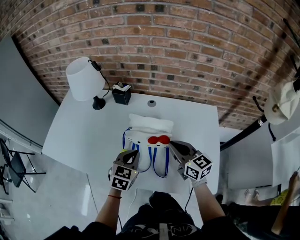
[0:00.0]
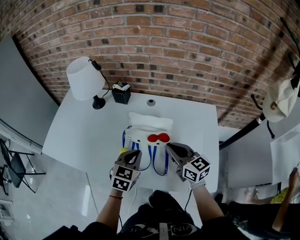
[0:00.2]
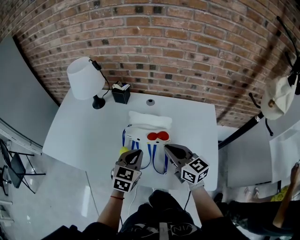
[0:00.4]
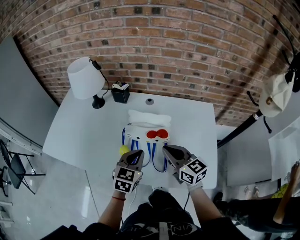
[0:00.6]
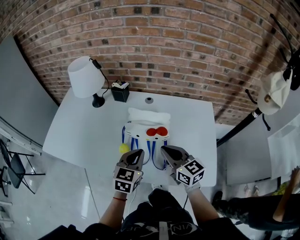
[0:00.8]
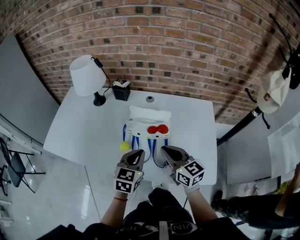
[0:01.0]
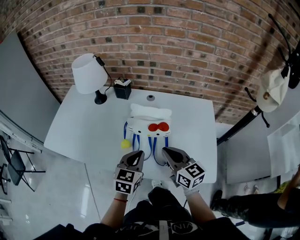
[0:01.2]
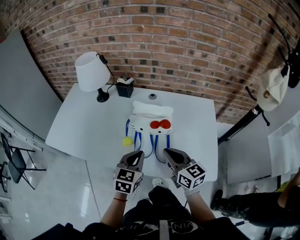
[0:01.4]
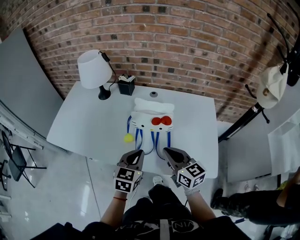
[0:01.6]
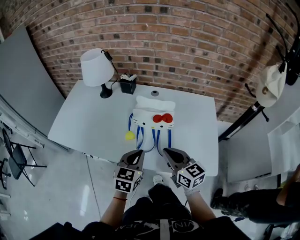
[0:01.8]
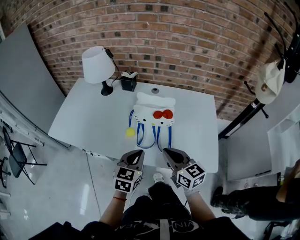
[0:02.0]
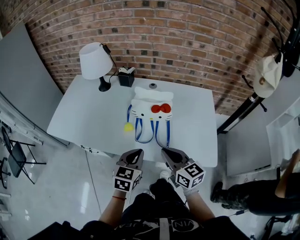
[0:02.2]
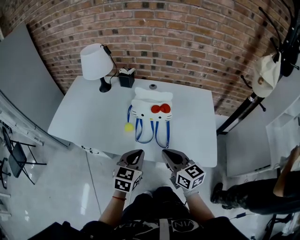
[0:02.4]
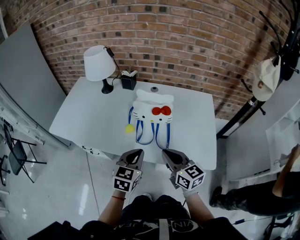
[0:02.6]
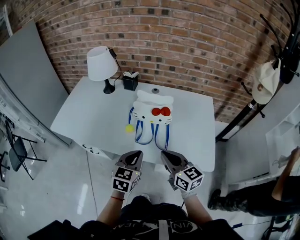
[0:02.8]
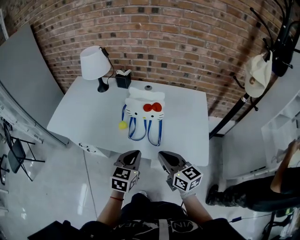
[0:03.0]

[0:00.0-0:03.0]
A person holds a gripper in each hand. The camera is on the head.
0.0 to 1.6 s: The left gripper travels backward by approximately 10 cm. Meanwhile the right gripper moves backward and to the left, approximately 15 cm.
1.6 to 3.0 s: Both grippers travel together backward, some 10 cm.

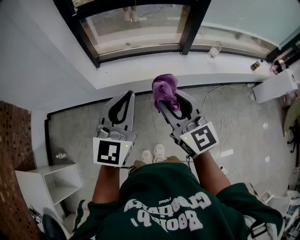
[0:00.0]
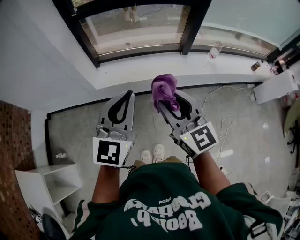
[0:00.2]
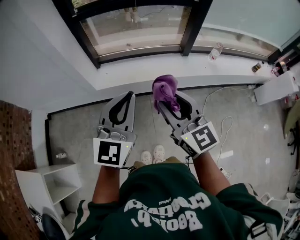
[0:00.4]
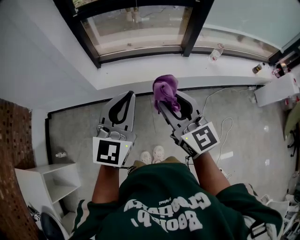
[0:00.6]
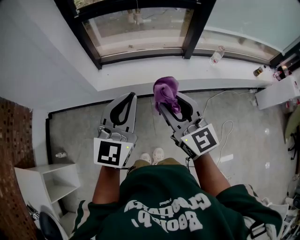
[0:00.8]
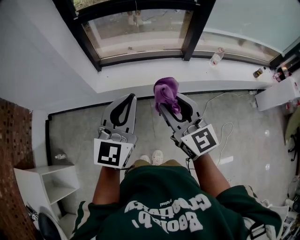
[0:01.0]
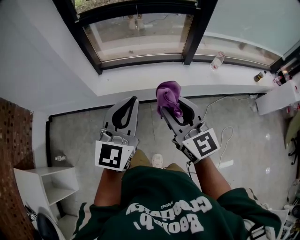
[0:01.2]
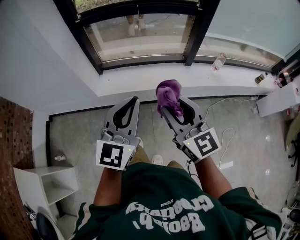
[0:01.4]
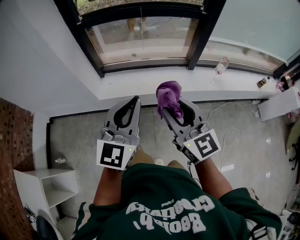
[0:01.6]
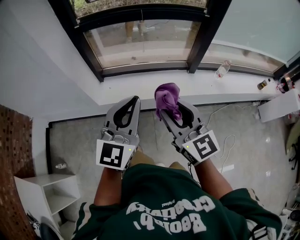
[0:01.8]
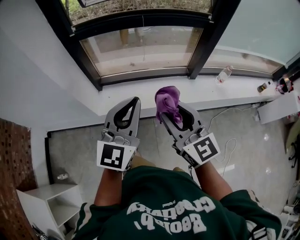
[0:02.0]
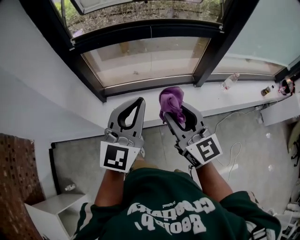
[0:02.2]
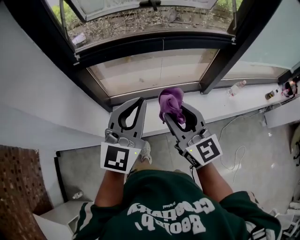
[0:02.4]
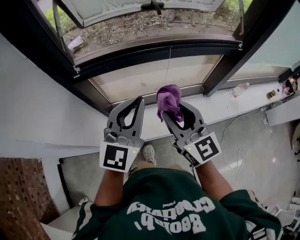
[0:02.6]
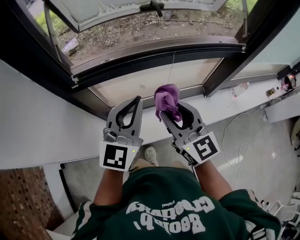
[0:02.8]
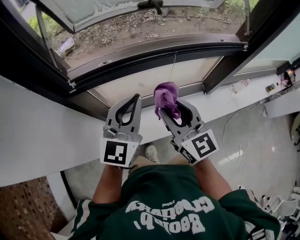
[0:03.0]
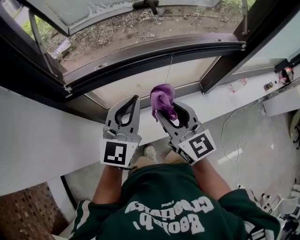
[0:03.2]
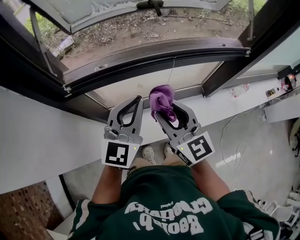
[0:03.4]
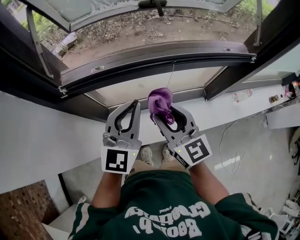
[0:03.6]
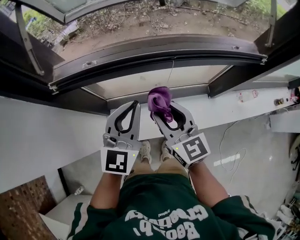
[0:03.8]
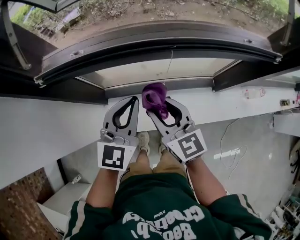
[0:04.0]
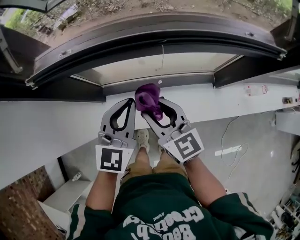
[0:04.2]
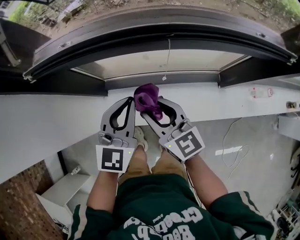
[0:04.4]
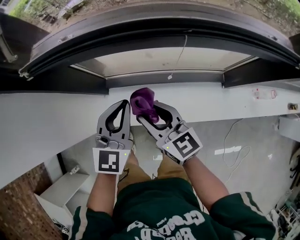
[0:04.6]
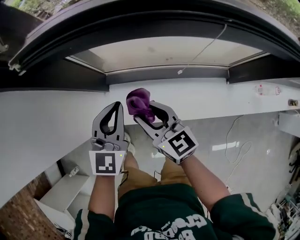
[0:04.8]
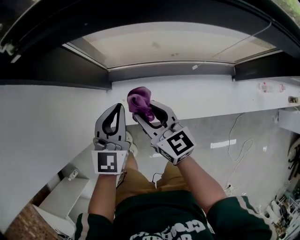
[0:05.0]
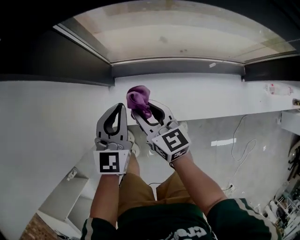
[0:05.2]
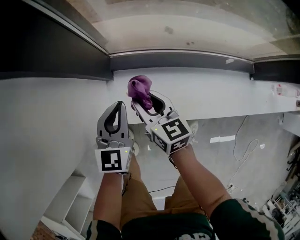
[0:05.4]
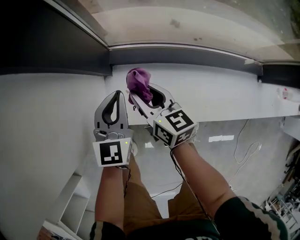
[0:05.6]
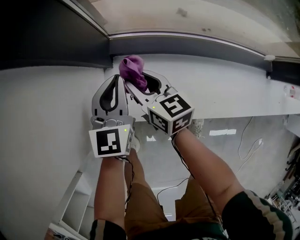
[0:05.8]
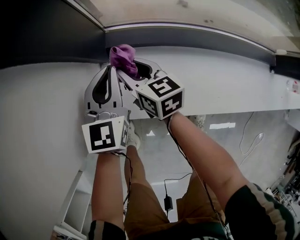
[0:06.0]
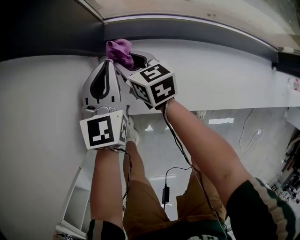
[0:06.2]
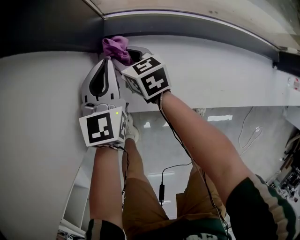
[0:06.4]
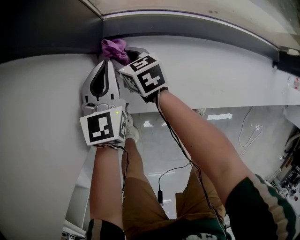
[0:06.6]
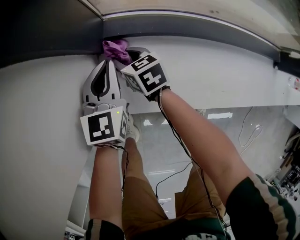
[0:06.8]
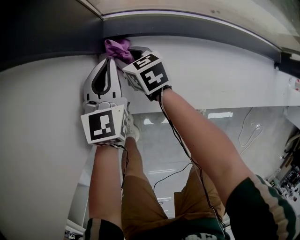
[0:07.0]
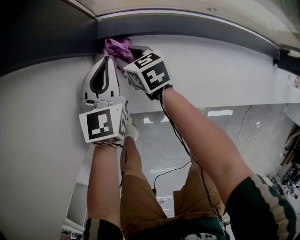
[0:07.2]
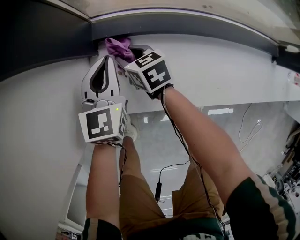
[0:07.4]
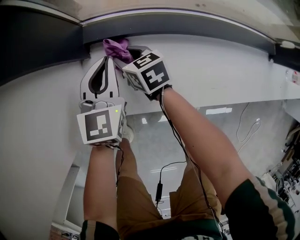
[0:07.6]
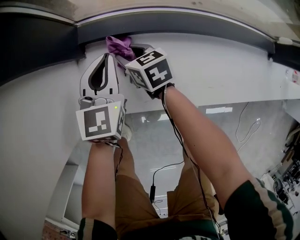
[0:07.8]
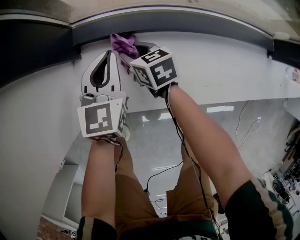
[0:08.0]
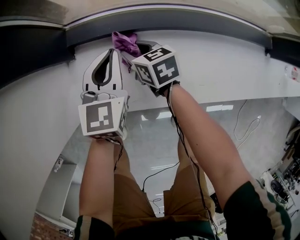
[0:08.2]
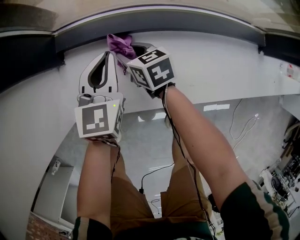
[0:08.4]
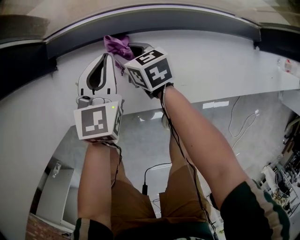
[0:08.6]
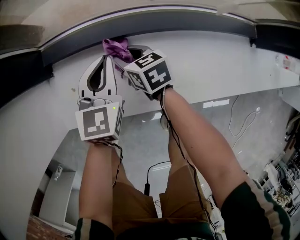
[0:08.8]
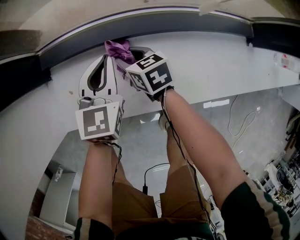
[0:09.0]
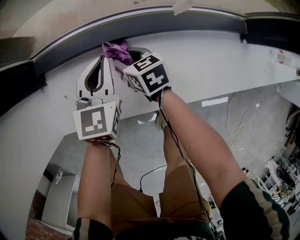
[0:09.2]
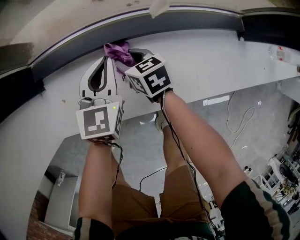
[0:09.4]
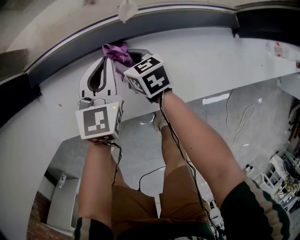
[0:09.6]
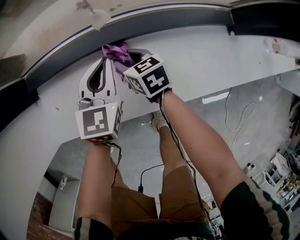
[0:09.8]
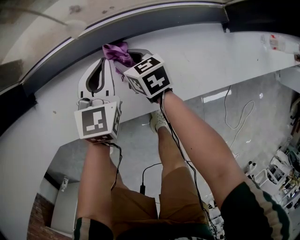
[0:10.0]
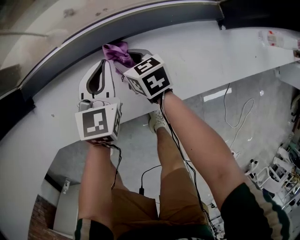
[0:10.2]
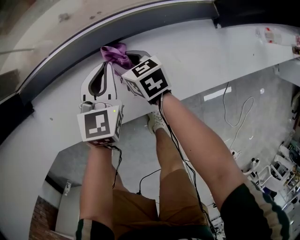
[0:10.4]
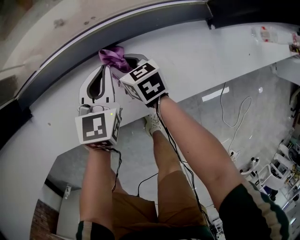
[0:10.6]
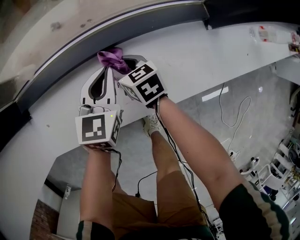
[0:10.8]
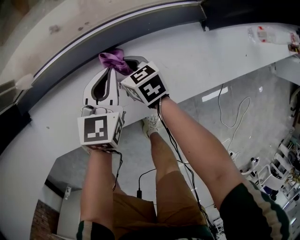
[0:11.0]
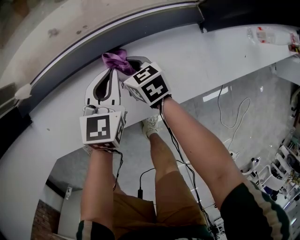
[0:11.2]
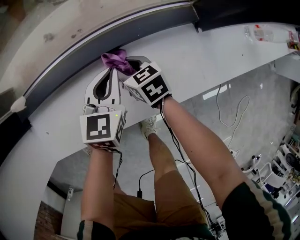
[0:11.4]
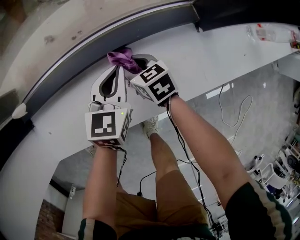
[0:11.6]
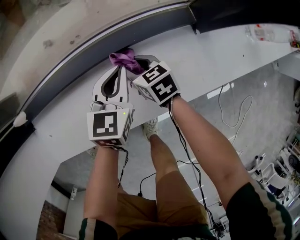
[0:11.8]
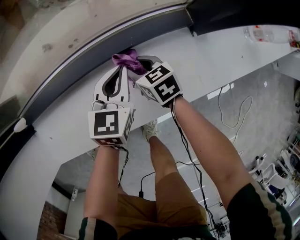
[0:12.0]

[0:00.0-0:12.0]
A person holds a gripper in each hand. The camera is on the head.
0.0 to 1.6 s: The two grippers go approximately 5 cm forward.
1.6 to 3.0 s: The pair of grippers is taken forward, about 50 cm.
3.0 to 4.4 s: The grippers both shift downward by approximately 15 cm. The right gripper rotates about 20 degrees.
4.4 to 6.0 s: Both grippers travel together downward and to the left, roughly 50 cm. The right gripper turns by approximately 20 degrees; the left gripper turns by roughly 20 degrees.
6.0 to 7.6 s: The right gripper goes about 10 cm downward. Meanwhile the left gripper ends up approximately 5 cm from where it was.
7.6 to 9.0 s: Both grippers travel together to the right, approximately 20 cm.
9.0 to 10.4 s: The grippers both shift to the right by roughly 15 cm.
10.4 to 12.0 s: Both grippers move to the right, about 15 cm.

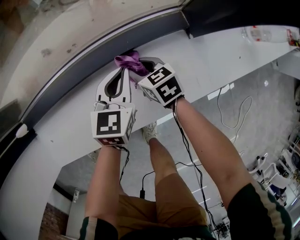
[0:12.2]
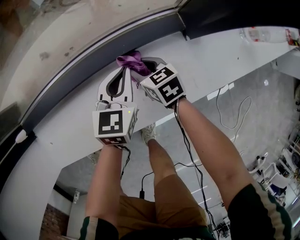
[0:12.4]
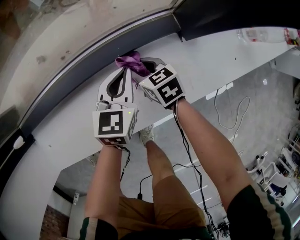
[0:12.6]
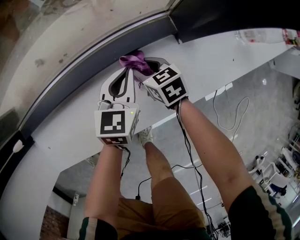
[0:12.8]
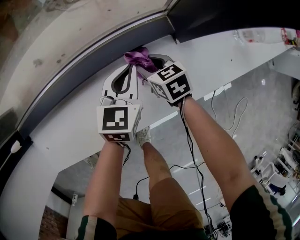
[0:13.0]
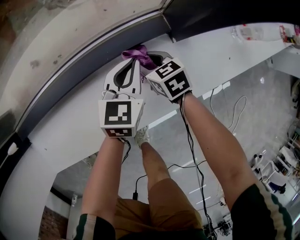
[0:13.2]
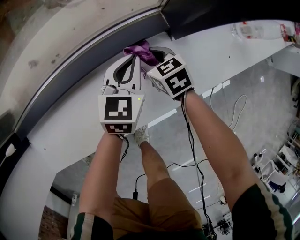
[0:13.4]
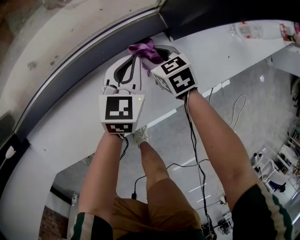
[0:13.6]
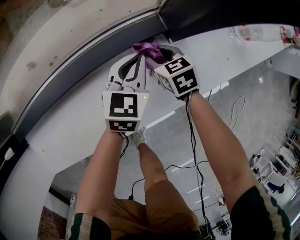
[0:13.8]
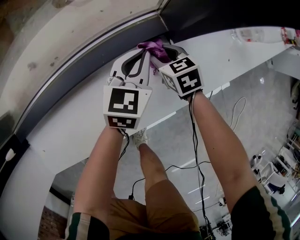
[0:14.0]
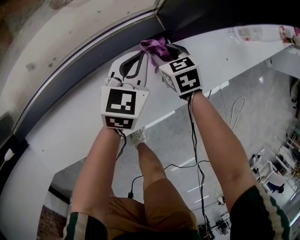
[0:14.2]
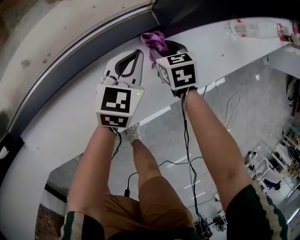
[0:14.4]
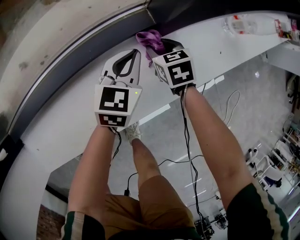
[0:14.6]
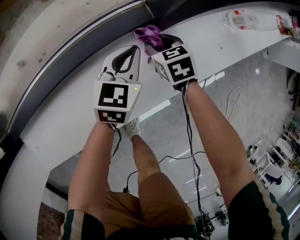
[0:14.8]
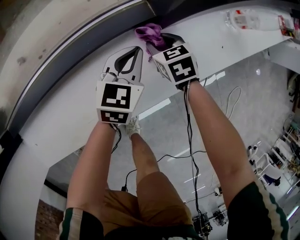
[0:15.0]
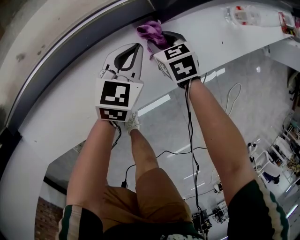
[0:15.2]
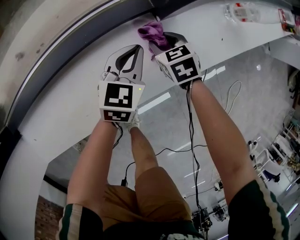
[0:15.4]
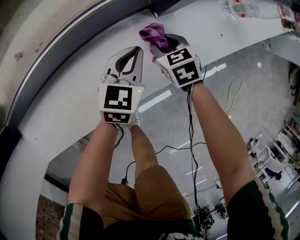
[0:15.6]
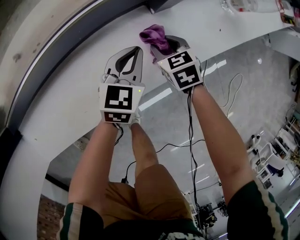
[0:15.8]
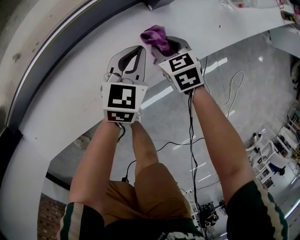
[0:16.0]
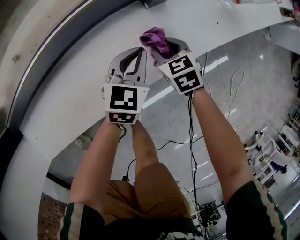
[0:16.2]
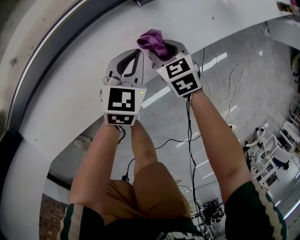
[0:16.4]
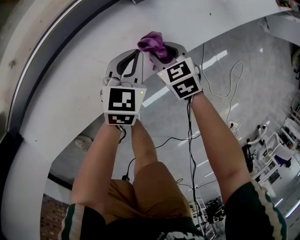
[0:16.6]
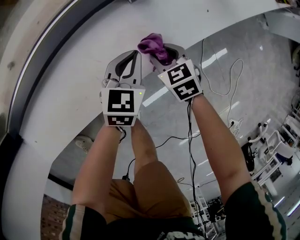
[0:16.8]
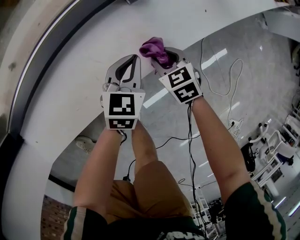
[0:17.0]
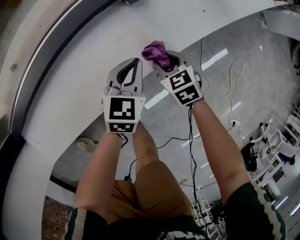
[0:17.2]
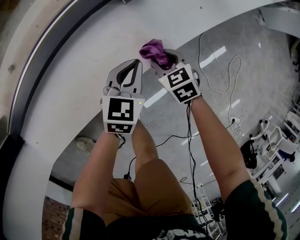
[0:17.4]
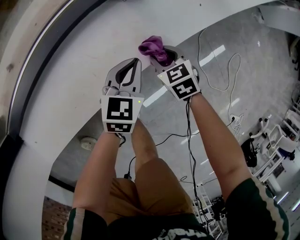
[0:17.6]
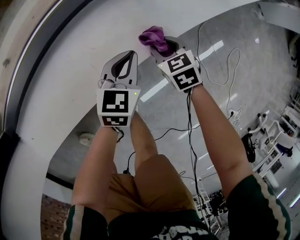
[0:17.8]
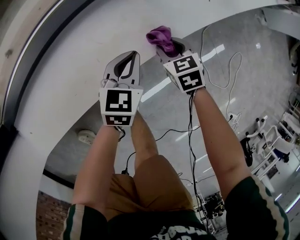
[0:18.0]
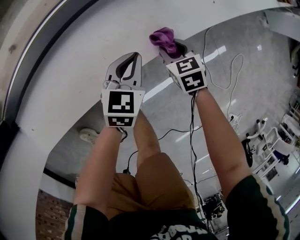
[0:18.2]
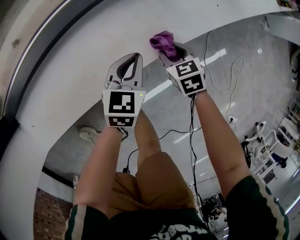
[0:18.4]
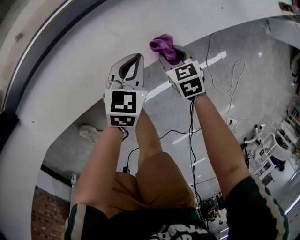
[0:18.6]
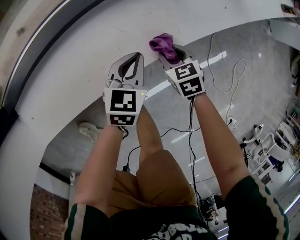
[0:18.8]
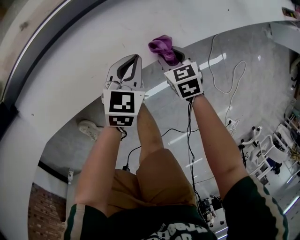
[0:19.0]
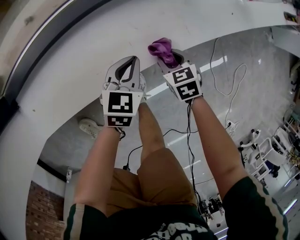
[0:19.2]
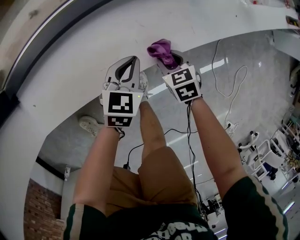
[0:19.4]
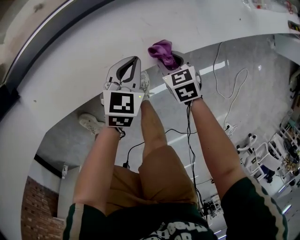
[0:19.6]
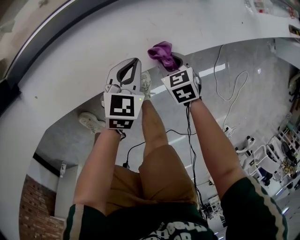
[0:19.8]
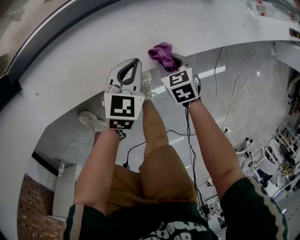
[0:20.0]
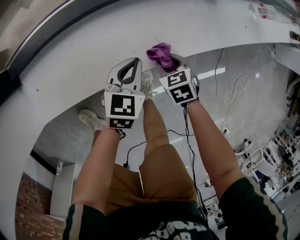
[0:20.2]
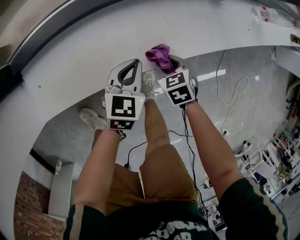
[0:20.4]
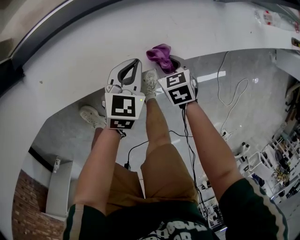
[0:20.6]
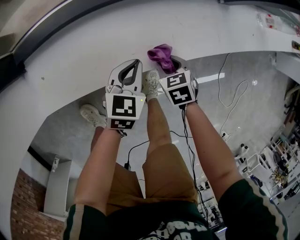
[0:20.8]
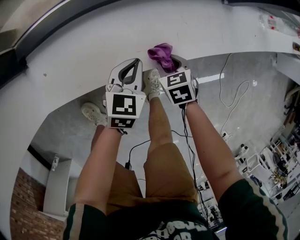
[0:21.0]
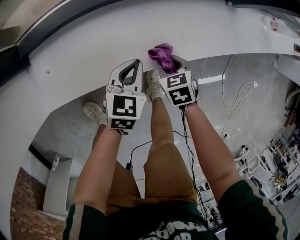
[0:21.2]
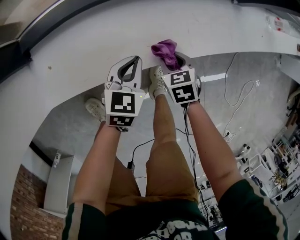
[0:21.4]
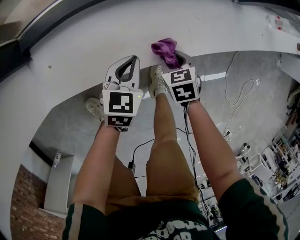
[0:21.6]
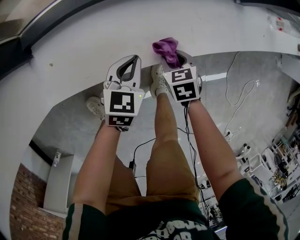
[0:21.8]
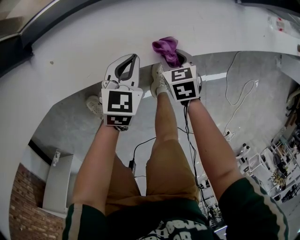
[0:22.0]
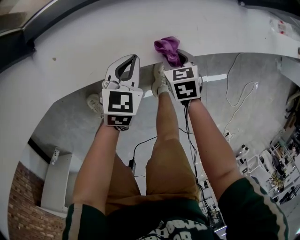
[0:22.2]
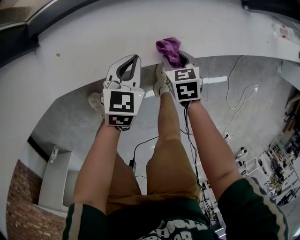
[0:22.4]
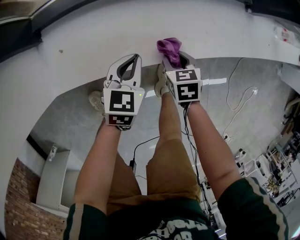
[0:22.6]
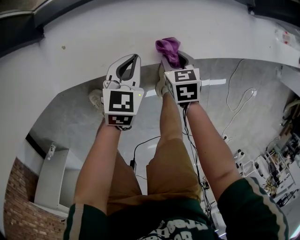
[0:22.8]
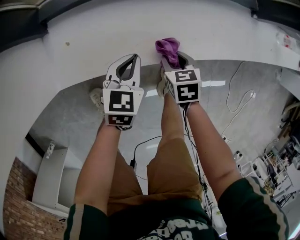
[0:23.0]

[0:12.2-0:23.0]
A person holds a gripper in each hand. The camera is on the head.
12.2 to 13.8 s: The grippers both shift to the right by roughly 15 cm.
13.8 to 15.2 s: The right gripper heads to the right, covering roughly 5 cm.
15.2 to 16.8 s: Both grippers move backward and to the right, some 15 cm.
16.8 to 18.4 s: The right gripper is displaced backward by some 5 cm, while the left gripper shifts some 10 cm backward and to the left.
18.4 to 20.0 s: The left gripper heads to the left, covering about 15 cm. Meanwhile the right gripper moves to the left and backward, roughly 15 cm.
20.0 to 21.4 s: The grippers both shift to the left by approximately 15 cm.
21.4 to 23.0 s: Both grippers move to the left, roughly 10 cm.
